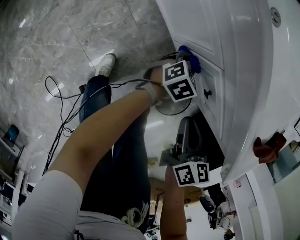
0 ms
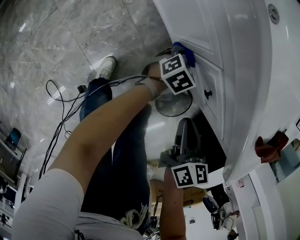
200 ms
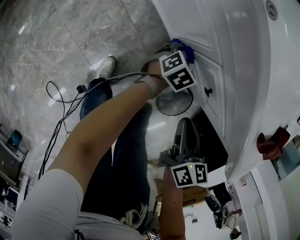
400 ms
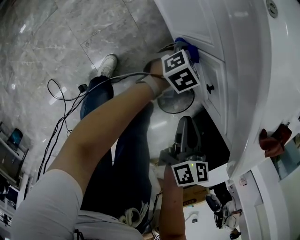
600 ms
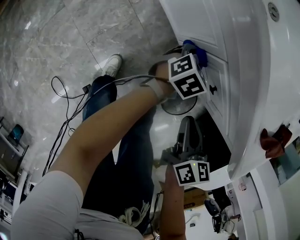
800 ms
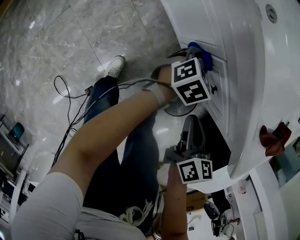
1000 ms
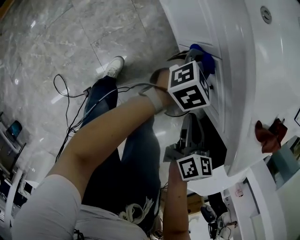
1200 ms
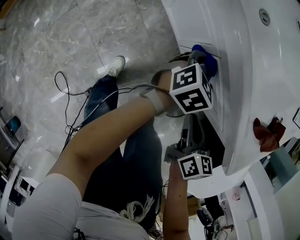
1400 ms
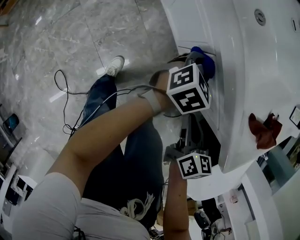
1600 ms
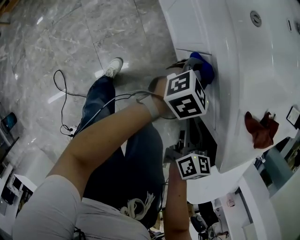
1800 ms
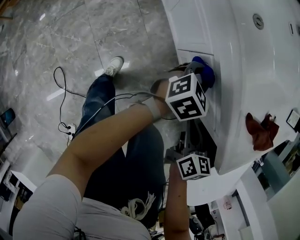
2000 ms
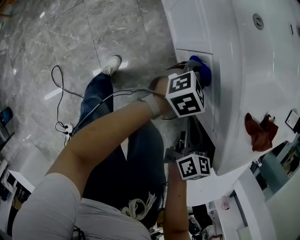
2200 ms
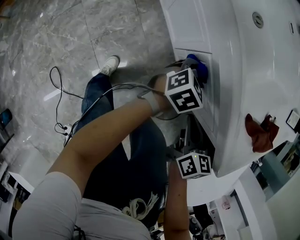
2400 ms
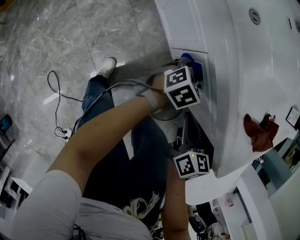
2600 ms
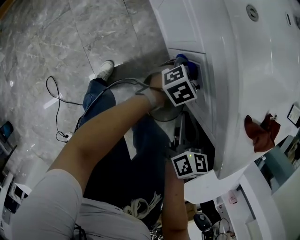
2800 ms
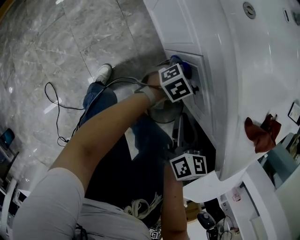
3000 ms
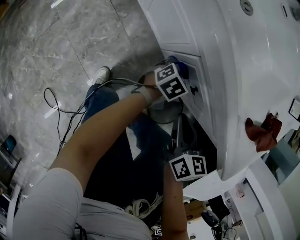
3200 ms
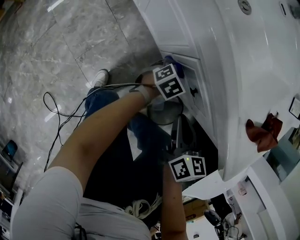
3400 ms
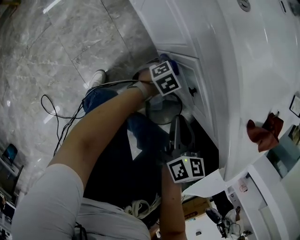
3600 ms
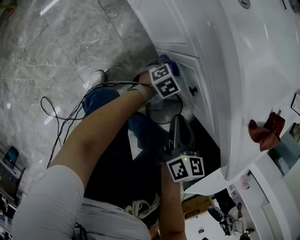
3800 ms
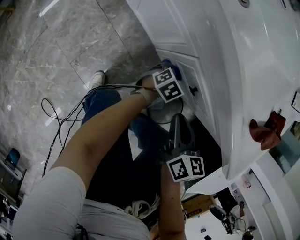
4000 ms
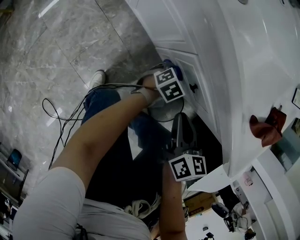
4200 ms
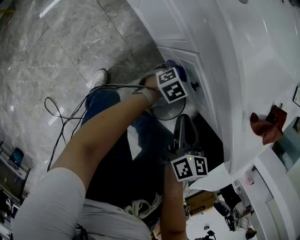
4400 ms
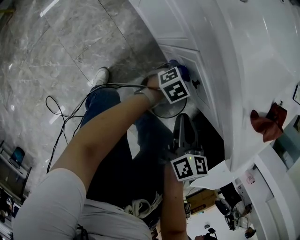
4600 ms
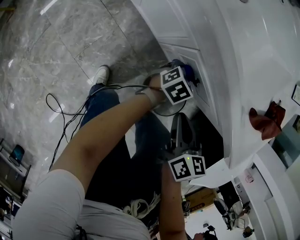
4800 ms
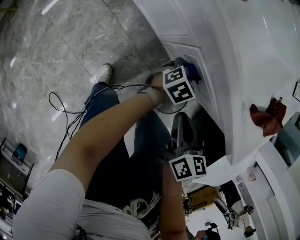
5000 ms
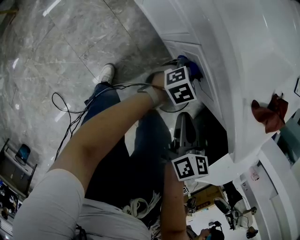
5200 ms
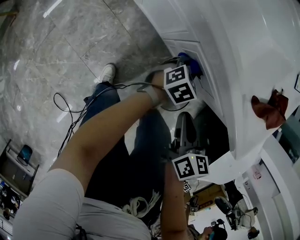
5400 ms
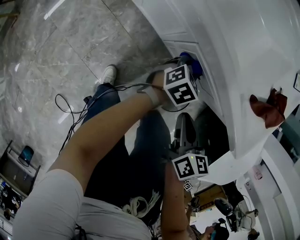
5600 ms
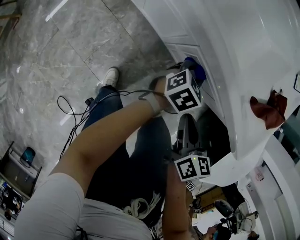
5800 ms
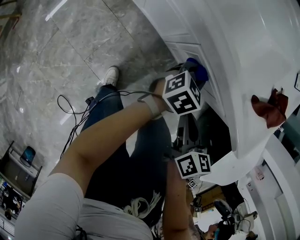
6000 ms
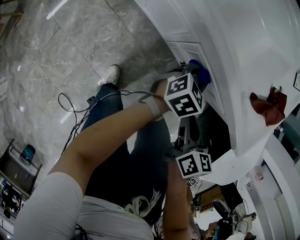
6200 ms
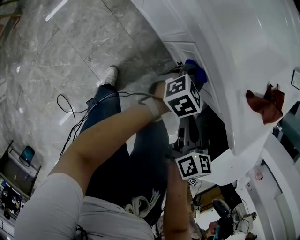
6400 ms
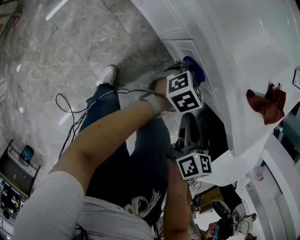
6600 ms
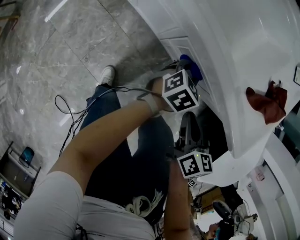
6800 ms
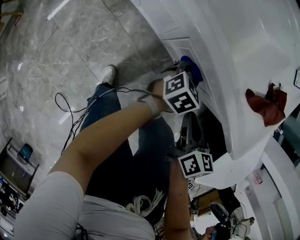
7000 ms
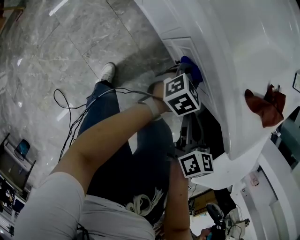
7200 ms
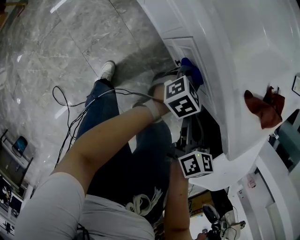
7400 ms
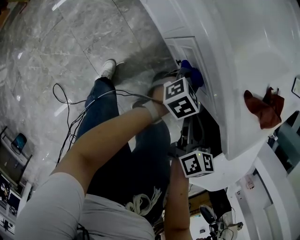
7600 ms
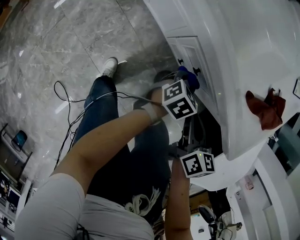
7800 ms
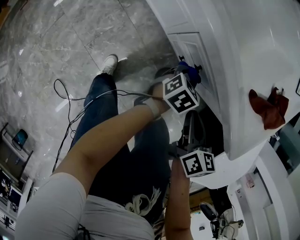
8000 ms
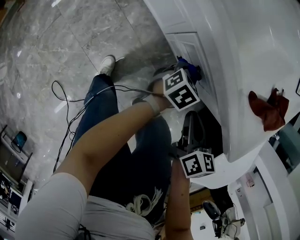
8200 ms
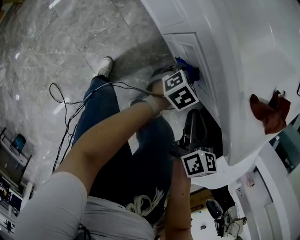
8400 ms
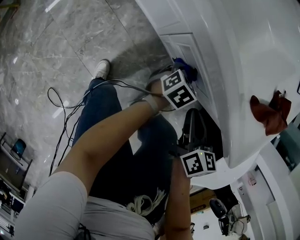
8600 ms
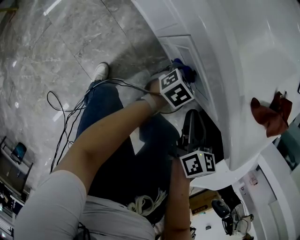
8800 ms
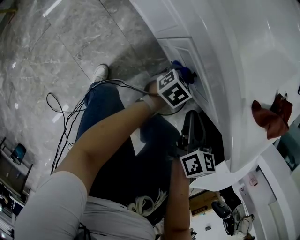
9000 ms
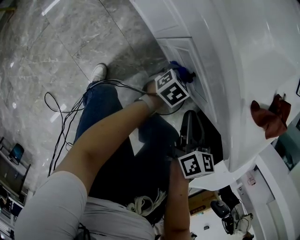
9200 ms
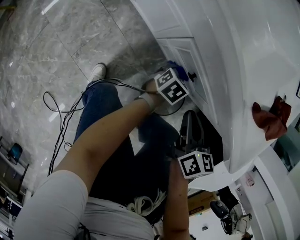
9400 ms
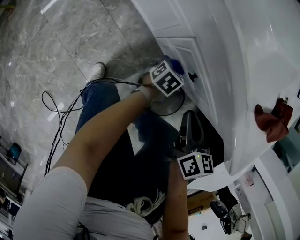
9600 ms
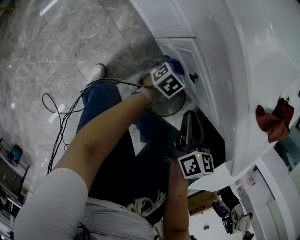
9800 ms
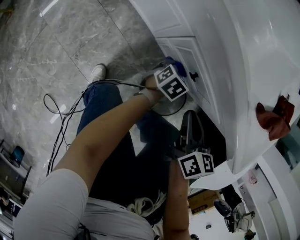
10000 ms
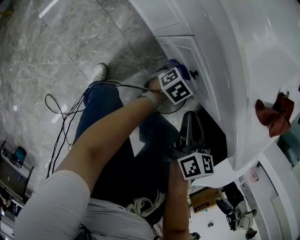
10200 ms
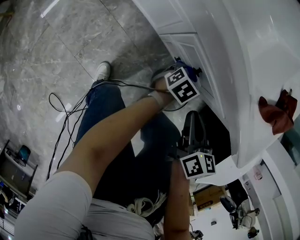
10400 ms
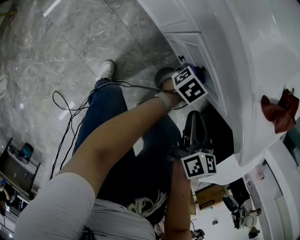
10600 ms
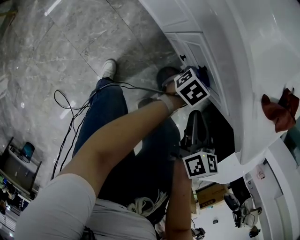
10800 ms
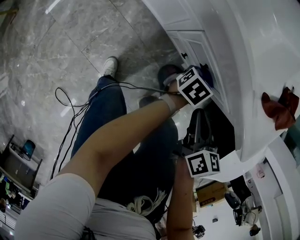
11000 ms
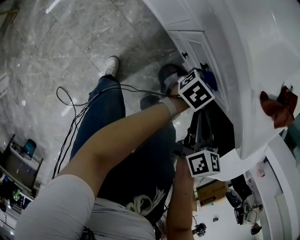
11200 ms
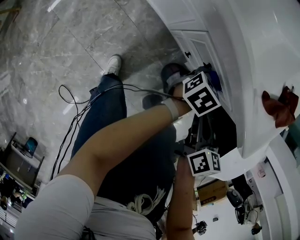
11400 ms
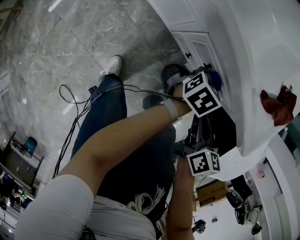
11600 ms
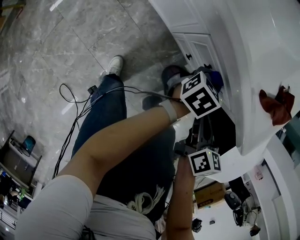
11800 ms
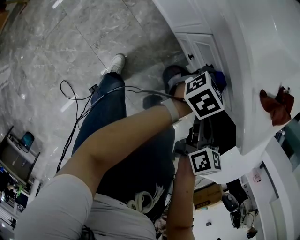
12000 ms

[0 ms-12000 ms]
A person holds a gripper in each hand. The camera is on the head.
0 ms to 1600 ms: The left gripper heads upward, covering some 15 cm.
1600 ms to 3000 ms: The left gripper travels downward by about 15 cm.
3000 ms to 4400 ms: The left gripper shifts by roughly 5 cm.
4400 ms to 6000 ms: The right gripper ends up some 5 cm from where it was. The left gripper is displaced upward by roughly 15 cm.
6000 ms to 7600 ms: The right gripper moves to the right, approximately 5 cm.
7600 ms to 9000 ms: The right gripper moves approximately 5 cm. The left gripper moves downward, about 10 cm.
10400 ms to 12000 ms: The right gripper moves some 5 cm. Meanwhile the left gripper shifts approximately 15 cm upward.

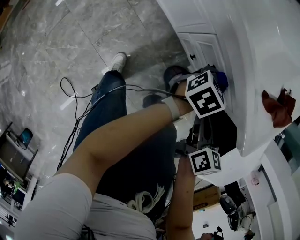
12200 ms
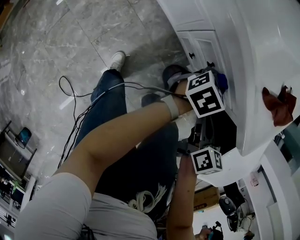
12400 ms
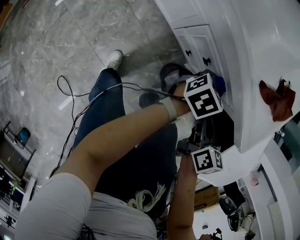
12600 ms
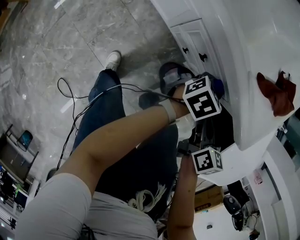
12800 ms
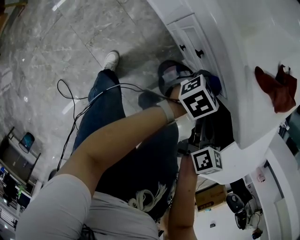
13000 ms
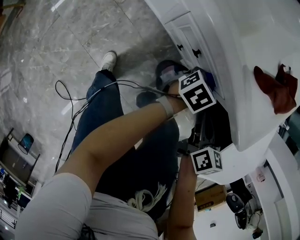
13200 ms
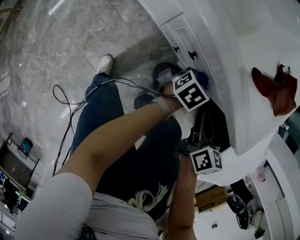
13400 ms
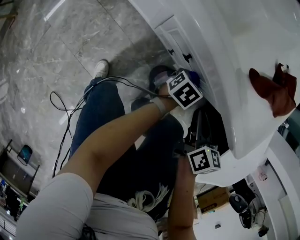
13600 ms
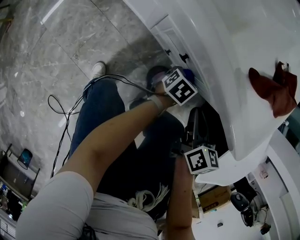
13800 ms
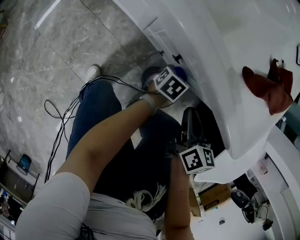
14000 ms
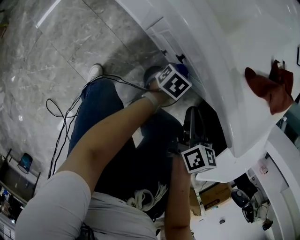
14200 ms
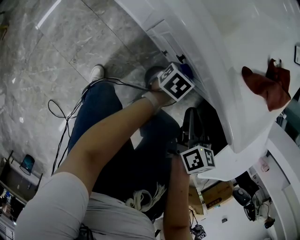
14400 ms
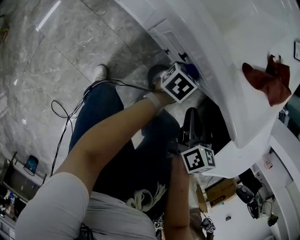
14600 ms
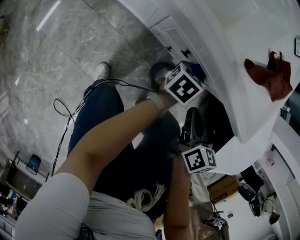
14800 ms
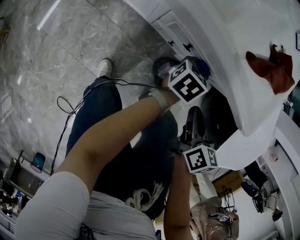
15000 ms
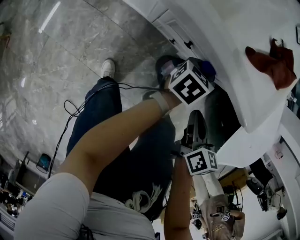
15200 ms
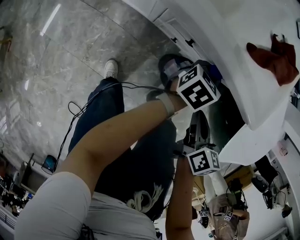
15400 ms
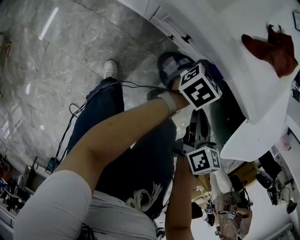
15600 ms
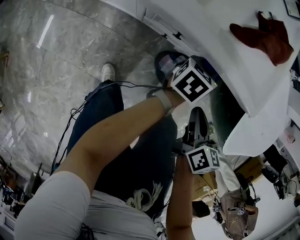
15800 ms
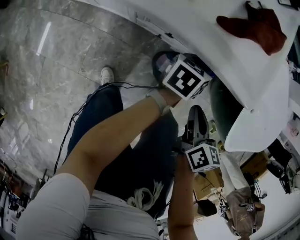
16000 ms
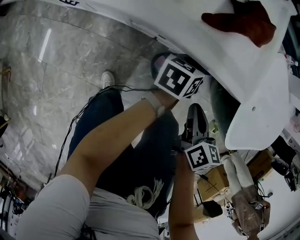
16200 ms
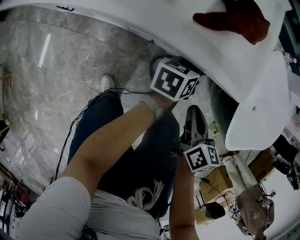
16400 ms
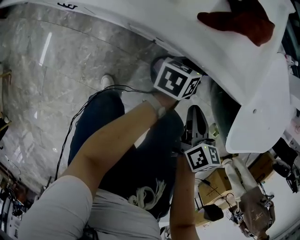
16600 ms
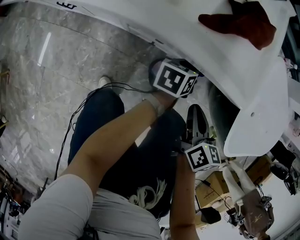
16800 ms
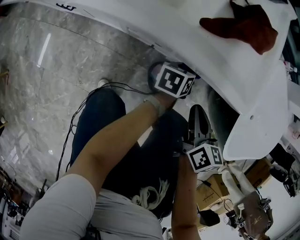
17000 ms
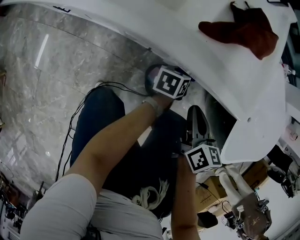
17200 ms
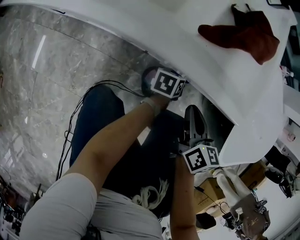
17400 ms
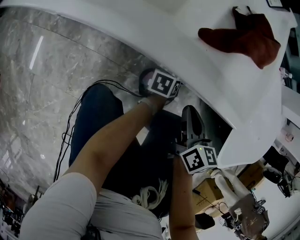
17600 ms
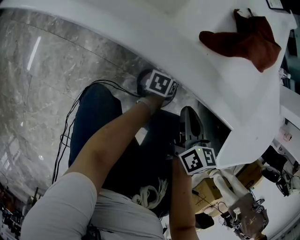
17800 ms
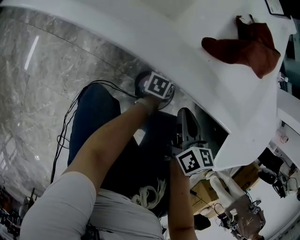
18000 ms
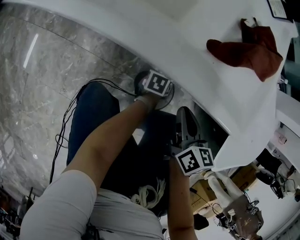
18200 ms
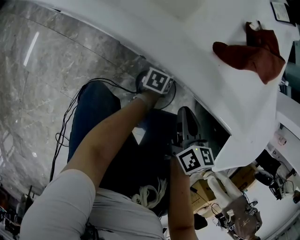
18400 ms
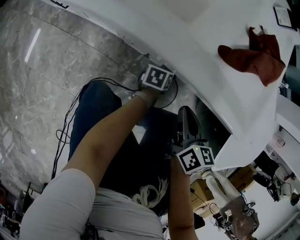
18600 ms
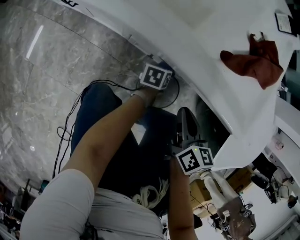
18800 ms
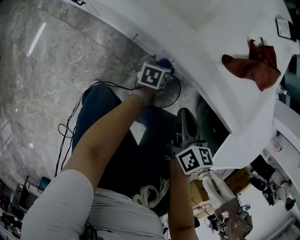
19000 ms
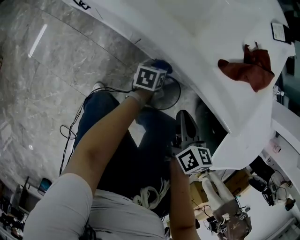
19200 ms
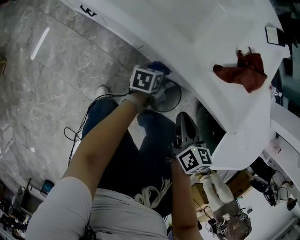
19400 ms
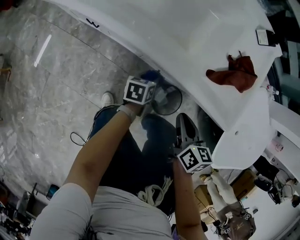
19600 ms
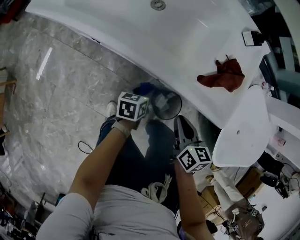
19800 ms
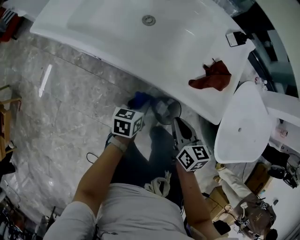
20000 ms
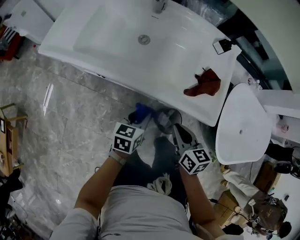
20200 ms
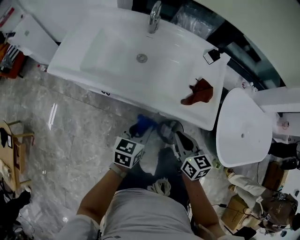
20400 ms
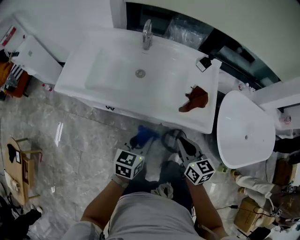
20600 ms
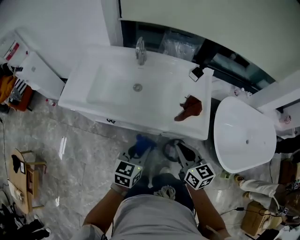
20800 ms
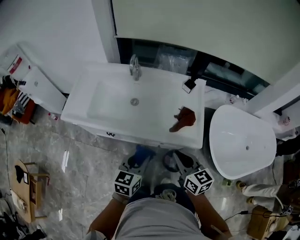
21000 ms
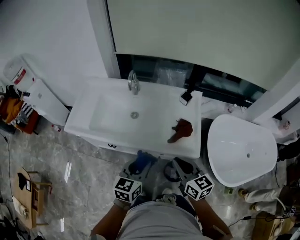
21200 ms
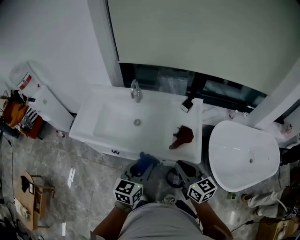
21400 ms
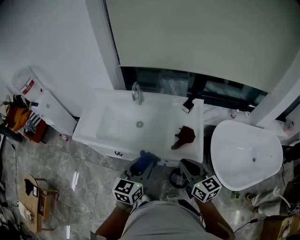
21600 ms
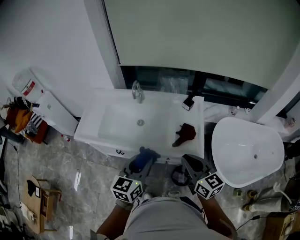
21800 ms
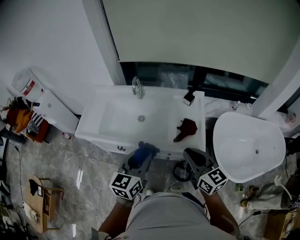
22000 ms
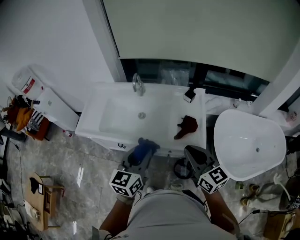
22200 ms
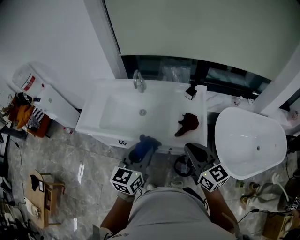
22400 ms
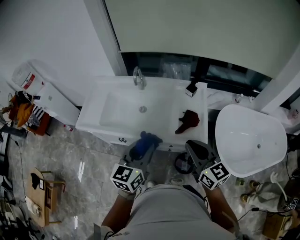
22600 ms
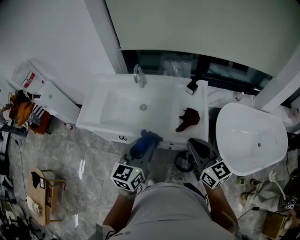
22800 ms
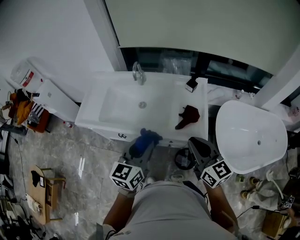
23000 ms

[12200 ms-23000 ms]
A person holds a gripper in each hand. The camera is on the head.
12200 ms to 13800 ms: The left gripper travels downward and to the right by approximately 20 cm. The right gripper goes approximately 5 cm to the right.
13800 ms to 15200 ms: The right gripper shifts roughly 5 cm backward. The left gripper moves upward, roughly 15 cm.
15200 ms to 16800 ms: The left gripper shifts about 5 cm to the right.
16800 ms to 18400 ms: The right gripper shifts by about 10 cm. Meanwhile the left gripper travels downward by some 20 cm.
18400 ms to 20000 ms: The left gripper goes roughly 40 cm upward and to the left. Meanwhile the right gripper goes approximately 20 cm upward and to the left.
20000 ms to 21400 ms: Both grippers move upward, roughly 30 cm. The left gripper rotates roughly 30 degrees. The right gripper swivels about 30 degrees.
21400 ms to 23000 ms: The grippers both shift upward by roughly 5 cm.

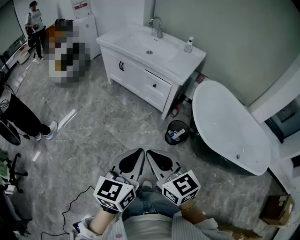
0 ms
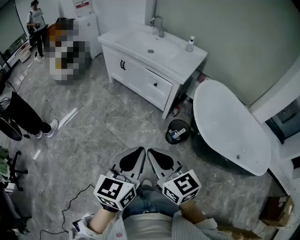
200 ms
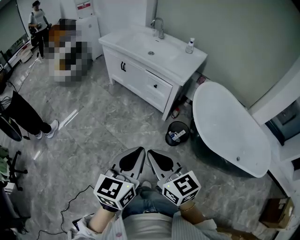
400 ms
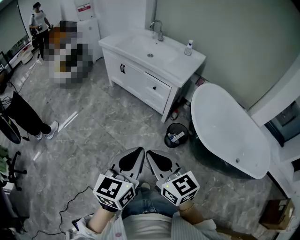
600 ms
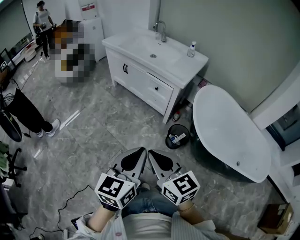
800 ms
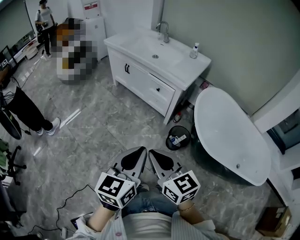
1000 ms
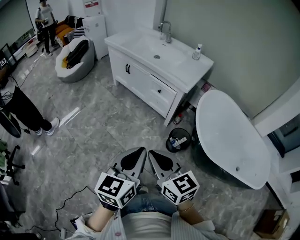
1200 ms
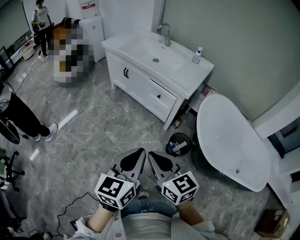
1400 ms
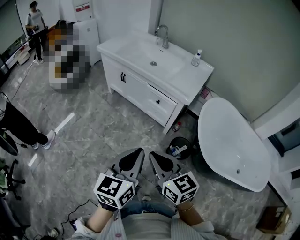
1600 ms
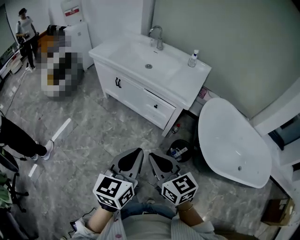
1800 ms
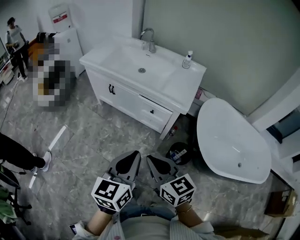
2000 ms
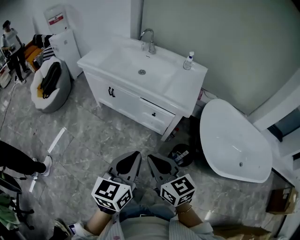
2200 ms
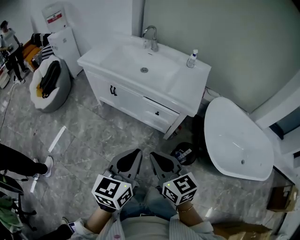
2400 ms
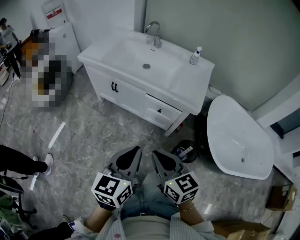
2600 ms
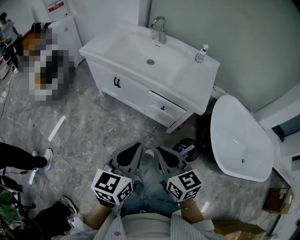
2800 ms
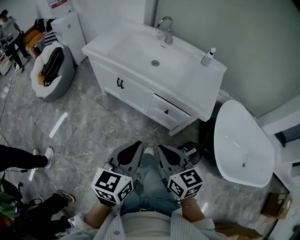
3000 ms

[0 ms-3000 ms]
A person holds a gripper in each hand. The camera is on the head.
0 ms to 1600 ms: Both grippers travel together forward, approximately 15 cm.
1600 ms to 3000 ms: The right gripper goes about 25 cm forward; the left gripper shifts about 25 cm forward and to the left.
